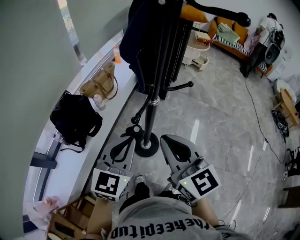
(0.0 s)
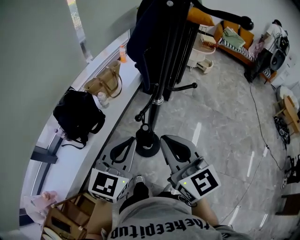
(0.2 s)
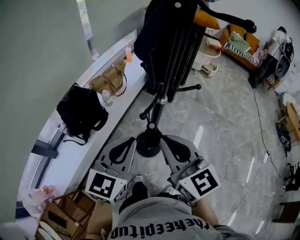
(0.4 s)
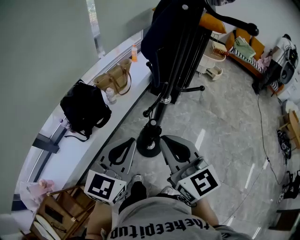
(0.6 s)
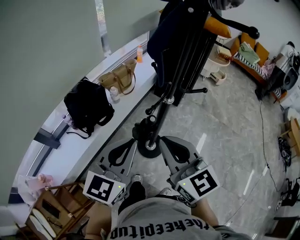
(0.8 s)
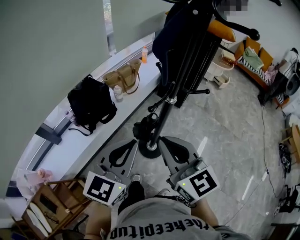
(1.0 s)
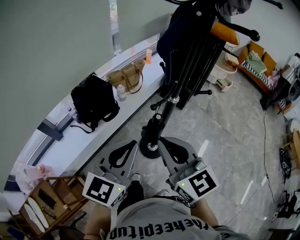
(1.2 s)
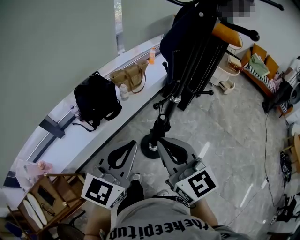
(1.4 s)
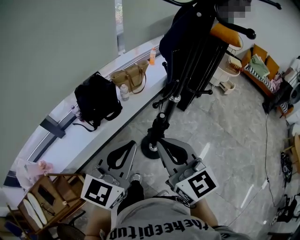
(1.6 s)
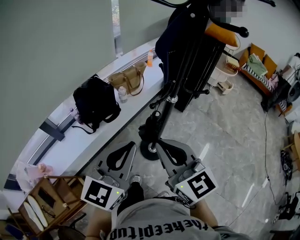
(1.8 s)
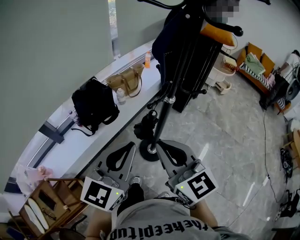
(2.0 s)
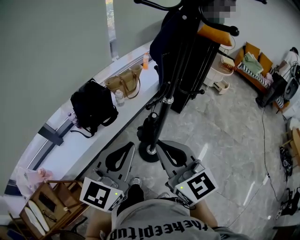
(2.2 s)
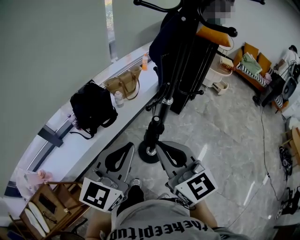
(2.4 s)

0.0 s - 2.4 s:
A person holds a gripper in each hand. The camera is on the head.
0.0 s - 1.2 s: The left gripper heads backward, covering approximately 10 cm. Meanwhile the right gripper ends up roughly 5 cm from where it was.
1.2 s - 2.4 s: The grippers stay close to where they were, moving slightly.

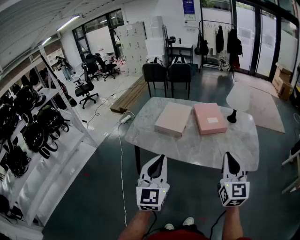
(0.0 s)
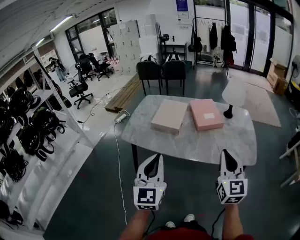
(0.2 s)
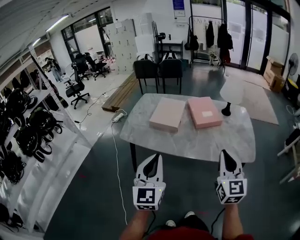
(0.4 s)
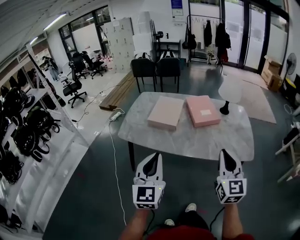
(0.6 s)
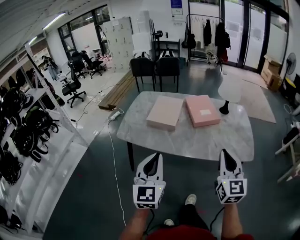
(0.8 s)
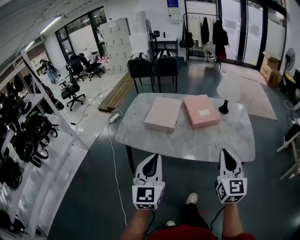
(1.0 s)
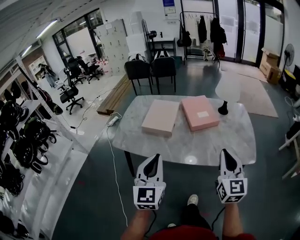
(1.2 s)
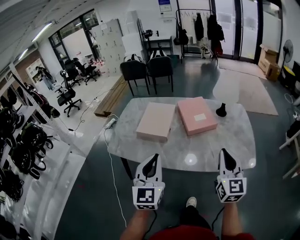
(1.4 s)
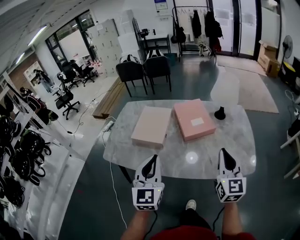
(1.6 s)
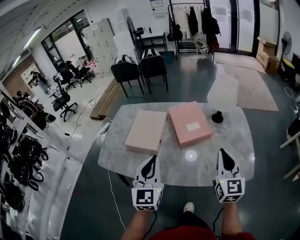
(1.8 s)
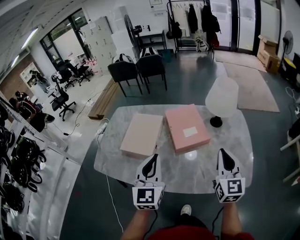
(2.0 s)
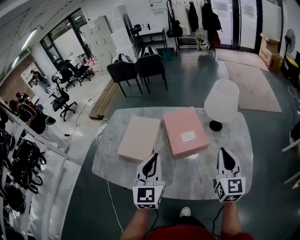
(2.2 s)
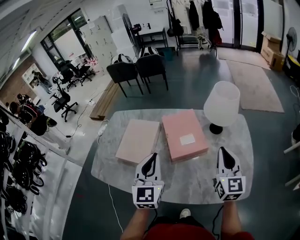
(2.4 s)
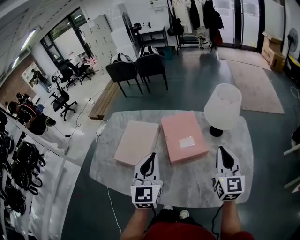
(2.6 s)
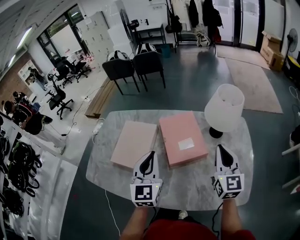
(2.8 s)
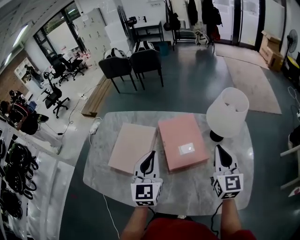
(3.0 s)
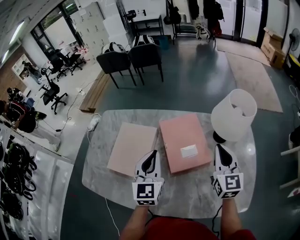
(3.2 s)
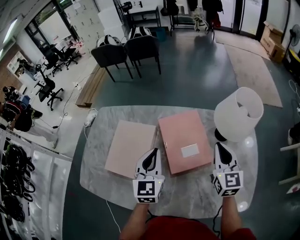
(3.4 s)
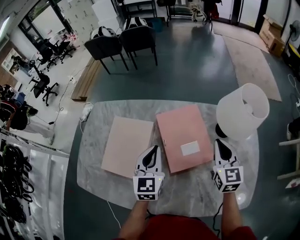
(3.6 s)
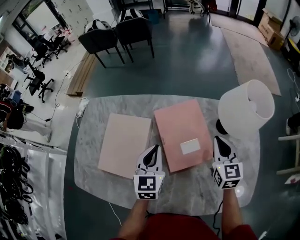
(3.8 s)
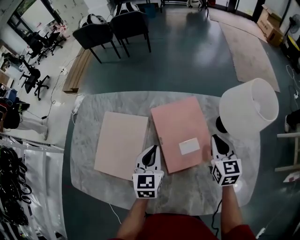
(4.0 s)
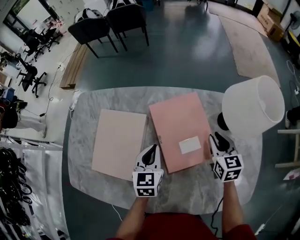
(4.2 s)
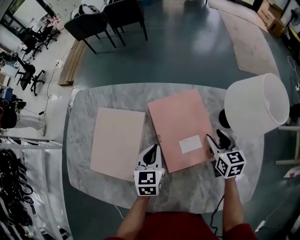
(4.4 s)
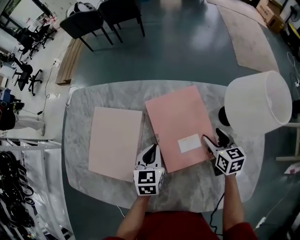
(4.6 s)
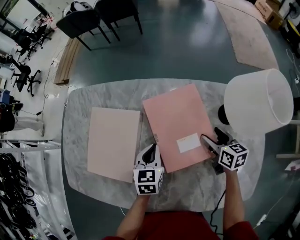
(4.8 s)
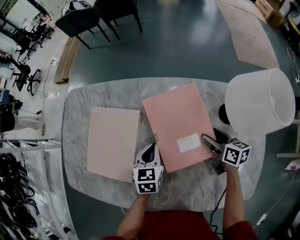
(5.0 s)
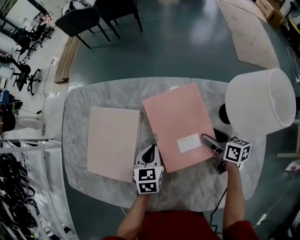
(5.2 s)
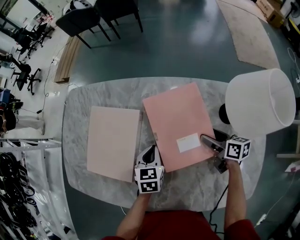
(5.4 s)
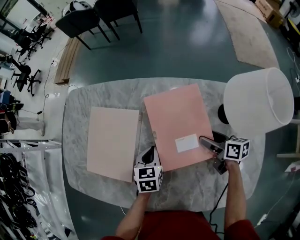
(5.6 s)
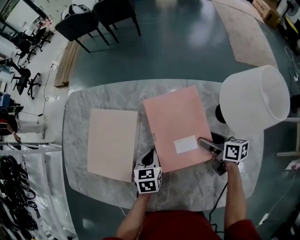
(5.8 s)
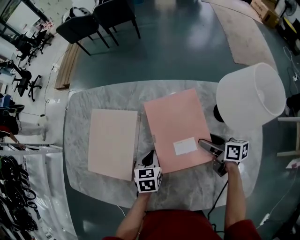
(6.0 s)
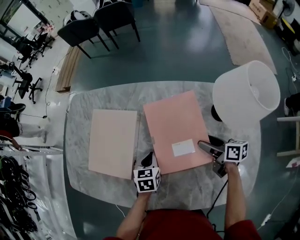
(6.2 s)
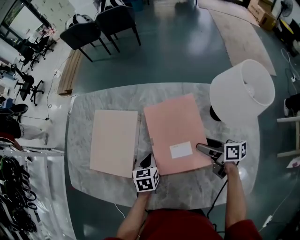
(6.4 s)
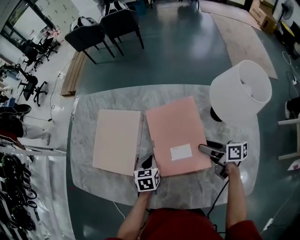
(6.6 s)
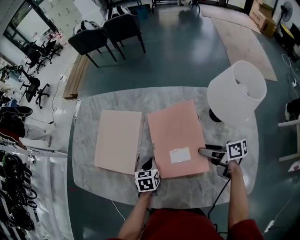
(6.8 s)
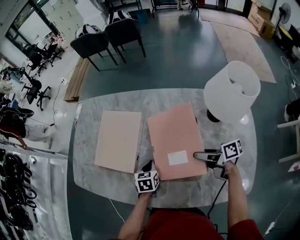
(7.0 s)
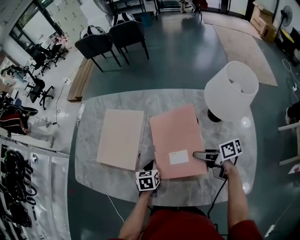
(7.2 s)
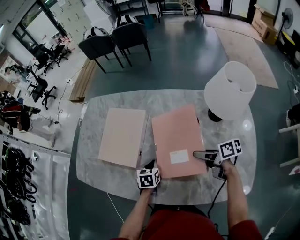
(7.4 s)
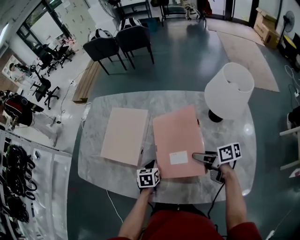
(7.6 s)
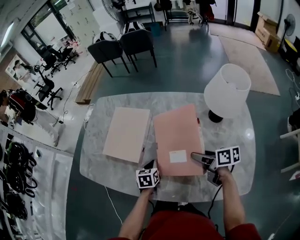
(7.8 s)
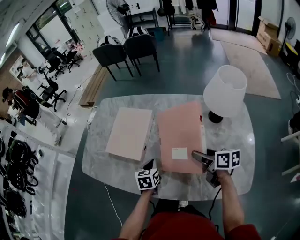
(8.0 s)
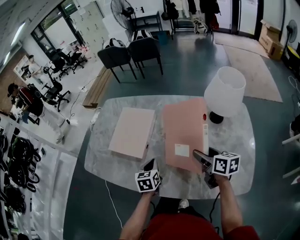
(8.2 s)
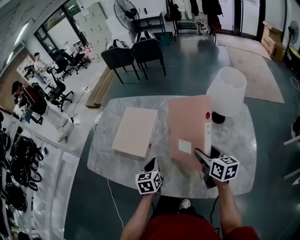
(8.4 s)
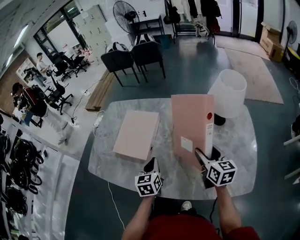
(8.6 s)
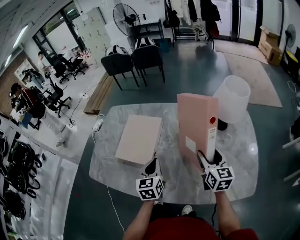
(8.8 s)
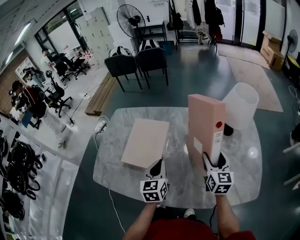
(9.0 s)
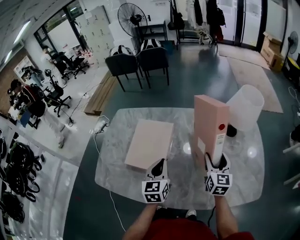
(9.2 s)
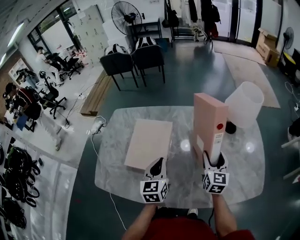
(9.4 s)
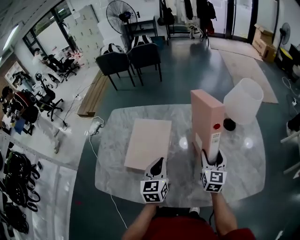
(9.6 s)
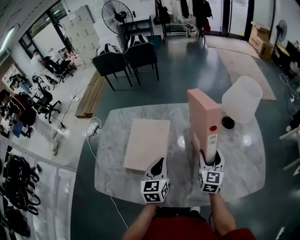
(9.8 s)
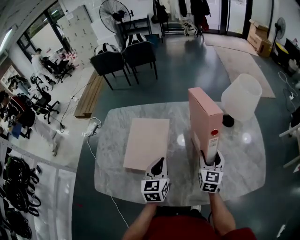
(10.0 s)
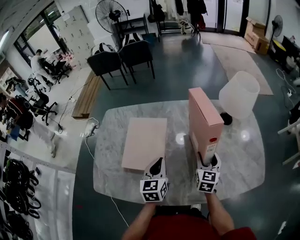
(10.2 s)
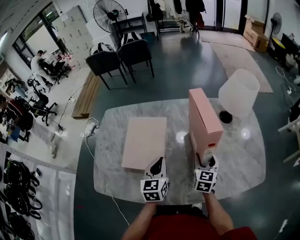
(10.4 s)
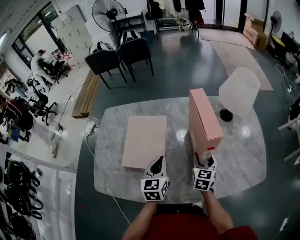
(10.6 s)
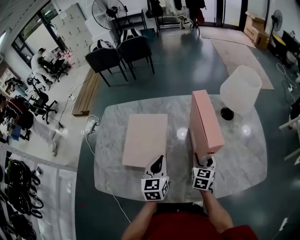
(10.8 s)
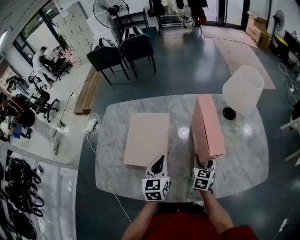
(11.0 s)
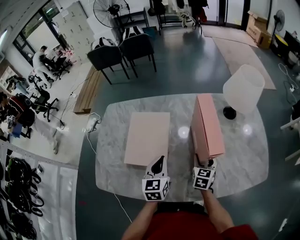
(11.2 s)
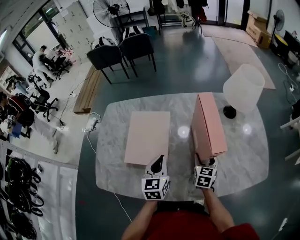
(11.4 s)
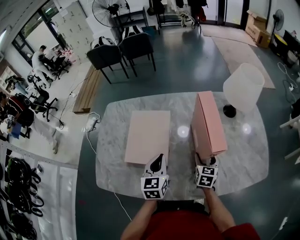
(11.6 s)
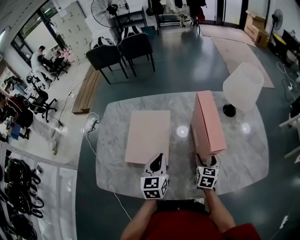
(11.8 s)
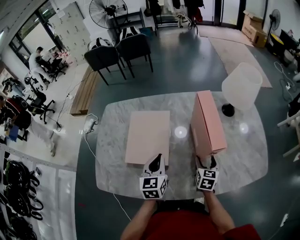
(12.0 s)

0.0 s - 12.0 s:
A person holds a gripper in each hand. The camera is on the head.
0.0 s - 1.6 s: The left gripper goes some 20 cm forward, while the right gripper goes some 20 cm forward and to the right.
1.6 s - 3.0 s: The two grippers go approximately 30 cm forward.
3.0 s - 4.4 s: The two grippers go about 25 cm downward and forward. The left gripper rotates about 30 degrees. Meanwhile the right gripper changes its angle by roughly 30 degrees, and opens its fingers.
4.4 s - 6.0 s: The left gripper is displaced downward by about 10 cm, while the right gripper ends up about 5 cm from where it was, rotates about 40 degrees, and opens up.
6.0 s - 7.6 s: The left gripper goes some 10 cm backward and to the left. The right gripper travels backward, to the left and upward by about 15 cm.
7.6 s - 9.0 s: The right gripper travels upward by roughly 10 cm, and changes its angle by some 70 degrees, while the left gripper is displaced upward by about 20 cm, and points its fingers about 30 degrees further upward.
9.0 s - 10.4 s: The left gripper ends up some 5 cm from where it was, while the right gripper is displaced downward and to the left by roughly 10 cm, and swivels about 20 degrees.
10.4 s - 12.0 s: The right gripper moves downward, some 5 cm.

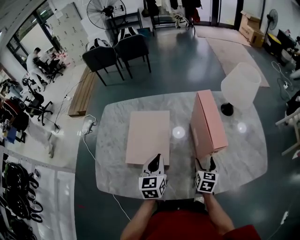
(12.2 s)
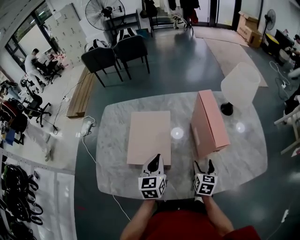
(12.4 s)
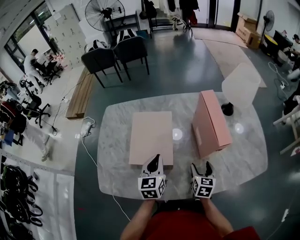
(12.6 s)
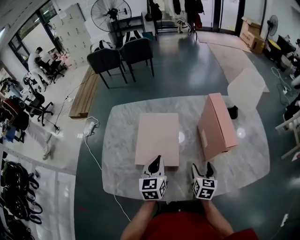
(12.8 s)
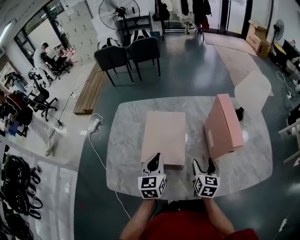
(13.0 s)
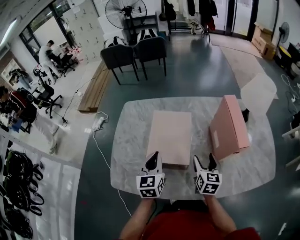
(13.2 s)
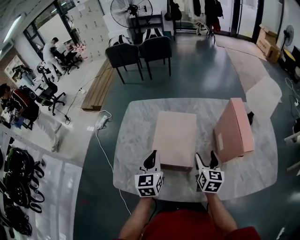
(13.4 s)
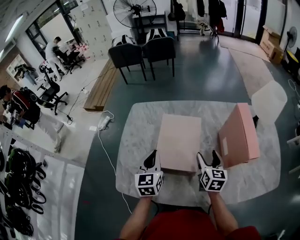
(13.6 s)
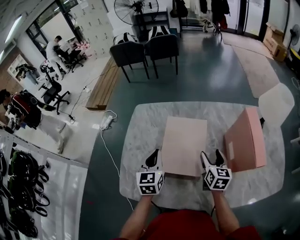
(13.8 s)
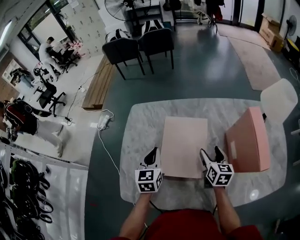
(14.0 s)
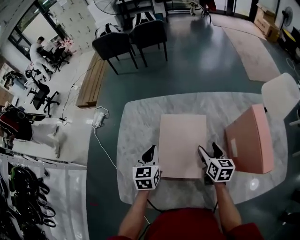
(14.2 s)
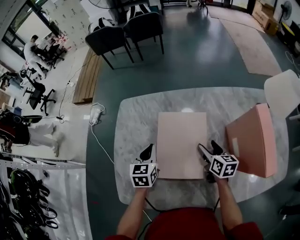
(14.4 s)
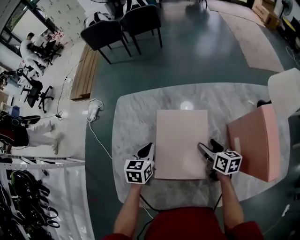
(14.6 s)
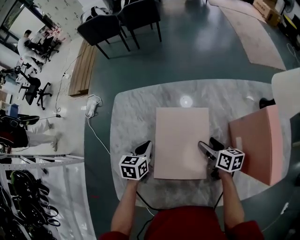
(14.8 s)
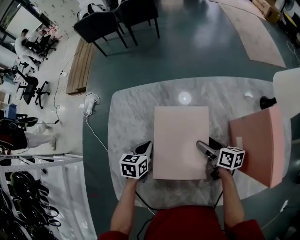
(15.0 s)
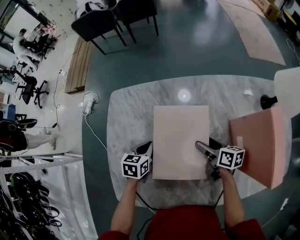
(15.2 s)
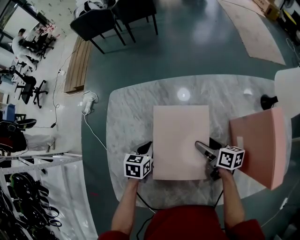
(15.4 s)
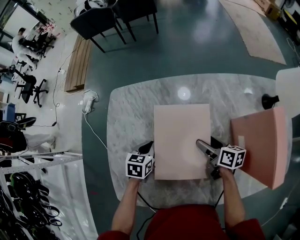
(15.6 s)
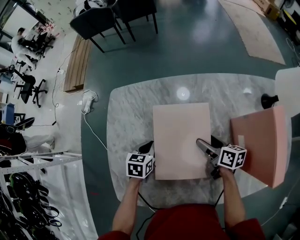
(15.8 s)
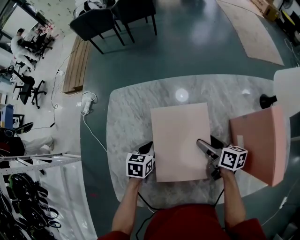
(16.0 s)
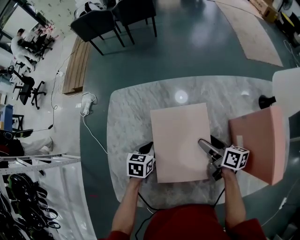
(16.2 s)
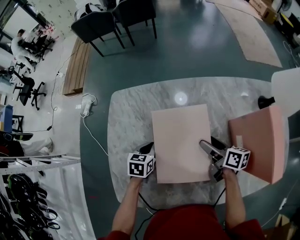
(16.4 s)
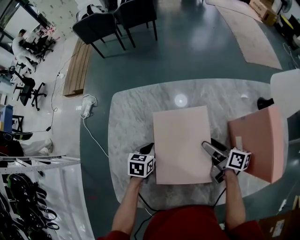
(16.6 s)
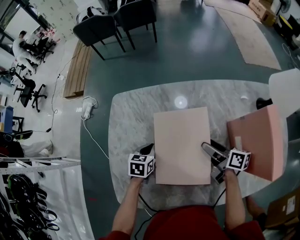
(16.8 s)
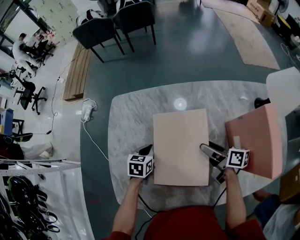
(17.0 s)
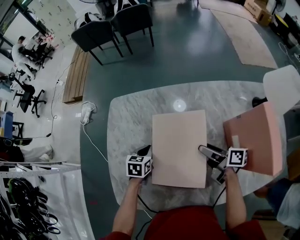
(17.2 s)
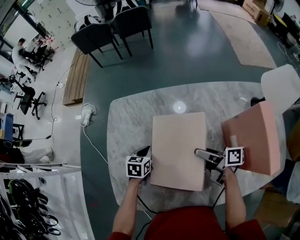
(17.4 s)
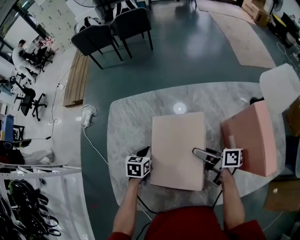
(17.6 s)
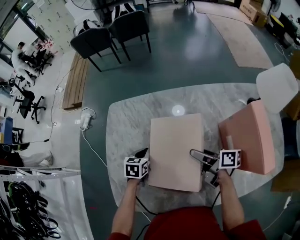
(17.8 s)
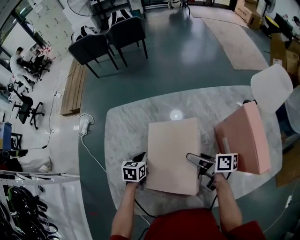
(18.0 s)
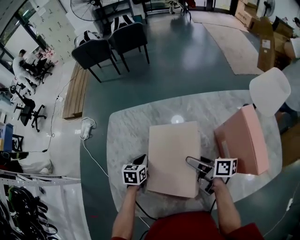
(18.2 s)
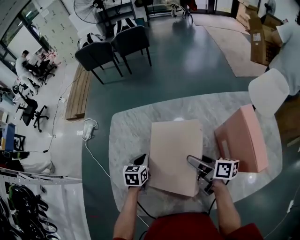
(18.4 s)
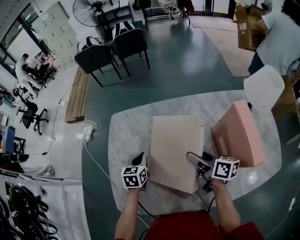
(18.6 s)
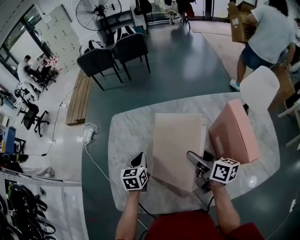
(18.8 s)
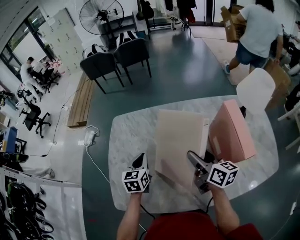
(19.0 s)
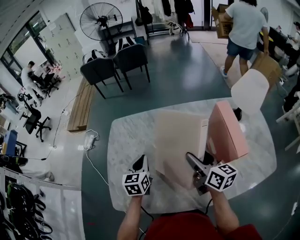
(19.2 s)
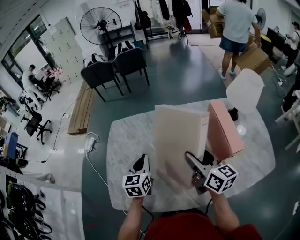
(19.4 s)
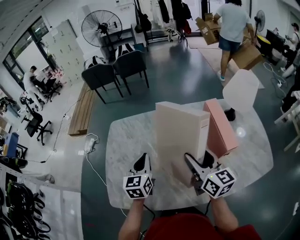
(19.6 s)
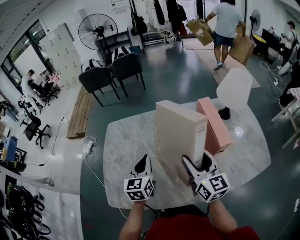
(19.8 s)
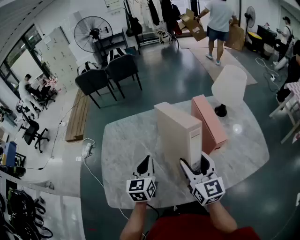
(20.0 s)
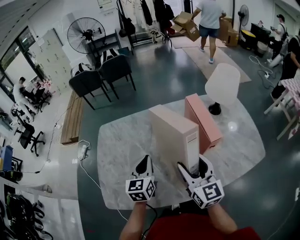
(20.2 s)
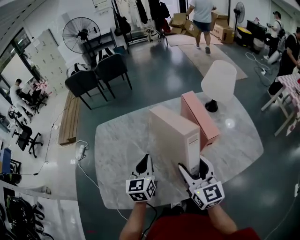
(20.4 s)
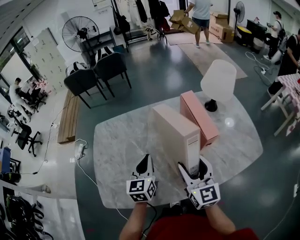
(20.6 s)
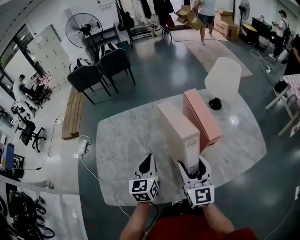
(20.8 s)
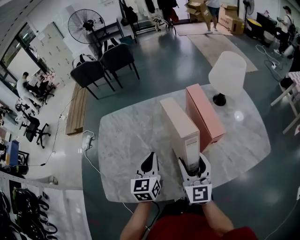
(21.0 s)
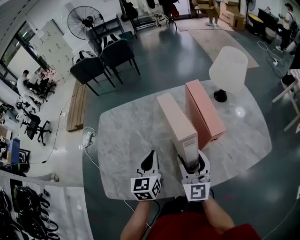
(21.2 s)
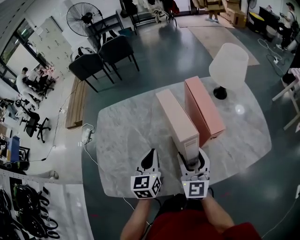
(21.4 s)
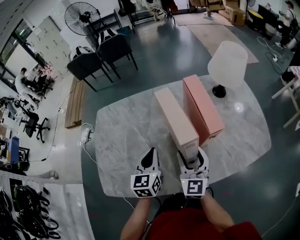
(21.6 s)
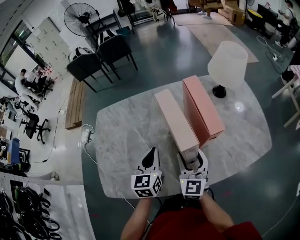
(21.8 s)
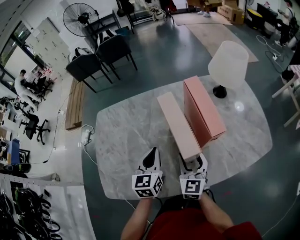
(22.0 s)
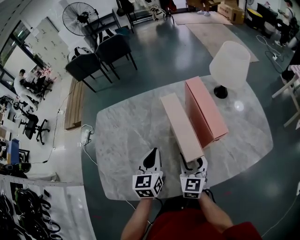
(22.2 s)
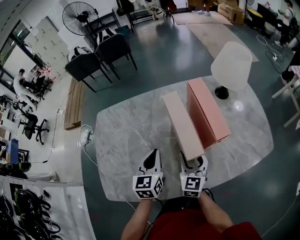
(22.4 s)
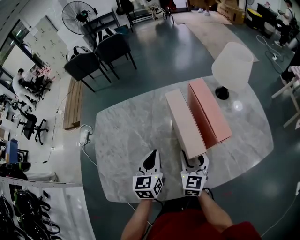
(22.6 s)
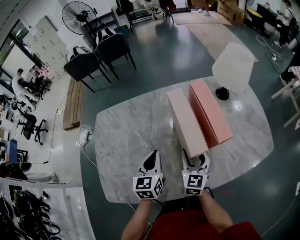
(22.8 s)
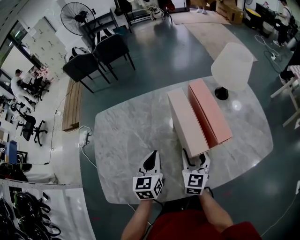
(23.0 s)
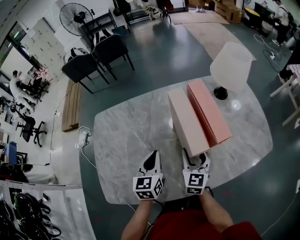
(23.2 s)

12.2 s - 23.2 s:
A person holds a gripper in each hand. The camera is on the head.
12.2 s - 13.8 s: The right gripper shifts approximately 20 cm to the left and forward; the left gripper shifts about 20 cm to the left.
13.8 s - 15.4 s: Both grippers move downward and forward, some 20 cm. The right gripper turns by about 40 degrees. Meanwhile the left gripper swivels about 40 degrees.
15.4 s - 17.0 s: The right gripper is displaced upward by approximately 5 cm.
17.0 s - 18.4 s: The two grippers go approximately 5 cm upward.
18.4 s - 20.0 s: Both grippers move upward, backward and to the right, approximately 25 cm. The left gripper changes its angle by roughly 30 degrees. The right gripper rotates around the line of its fingers by approximately 50 degrees, counterclockwise from behind.
20.0 s - 21.6 s: The left gripper is displaced to the right by roughly 5 cm, while the right gripper moves downward, roughly 10 cm.
21.6 s - 23.2 s: The right gripper shifts about 5 cm downward.
